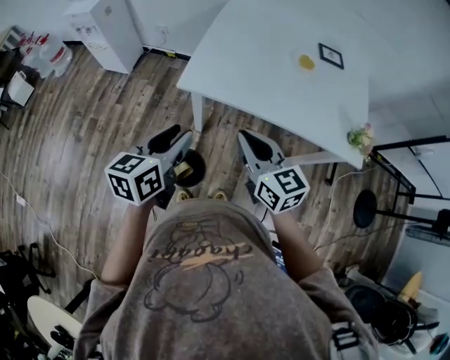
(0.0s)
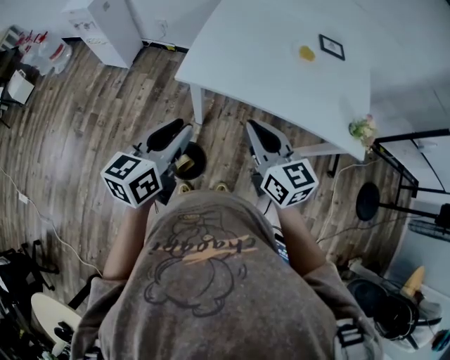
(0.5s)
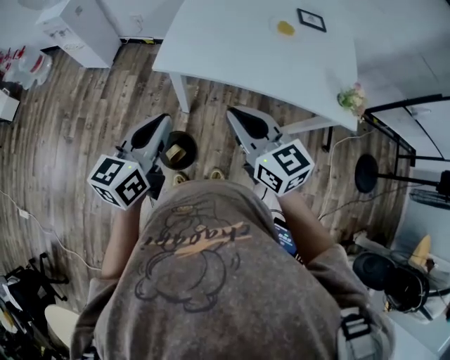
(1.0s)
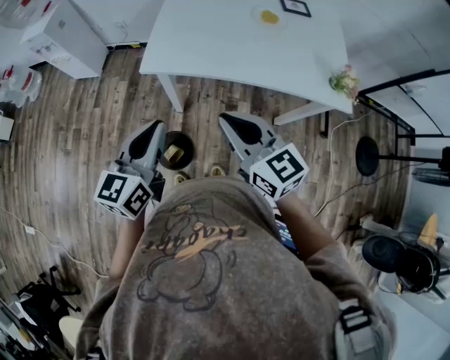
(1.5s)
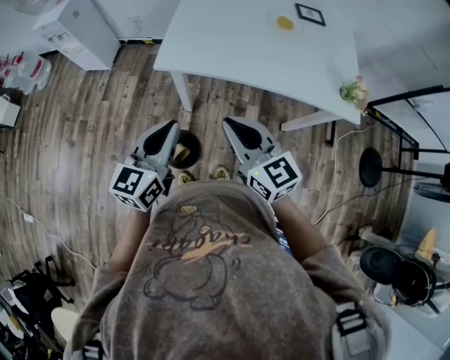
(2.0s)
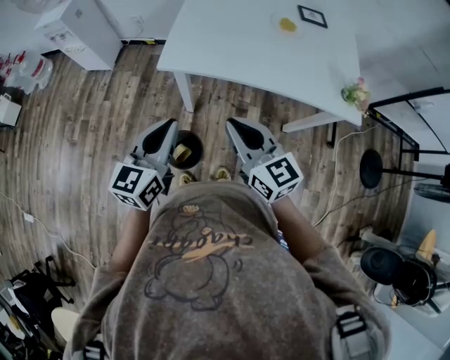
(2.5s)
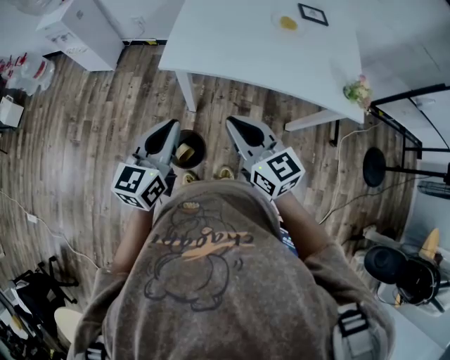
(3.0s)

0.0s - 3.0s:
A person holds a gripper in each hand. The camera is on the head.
0.0s - 1.5s: The right gripper is displaced backward by roughly 5 cm; the left gripper shifts by about 5 cm, and closes its fingers.
1.5s - 3.0s: The grippers stay close to where they were, moving slightly.

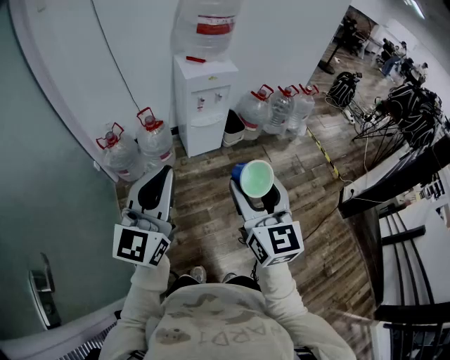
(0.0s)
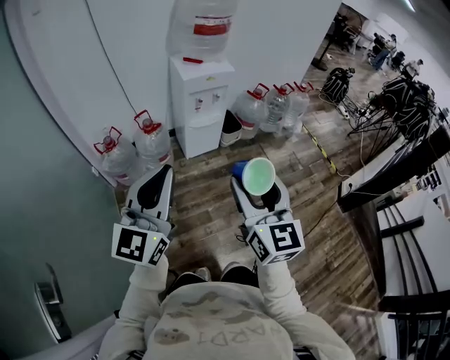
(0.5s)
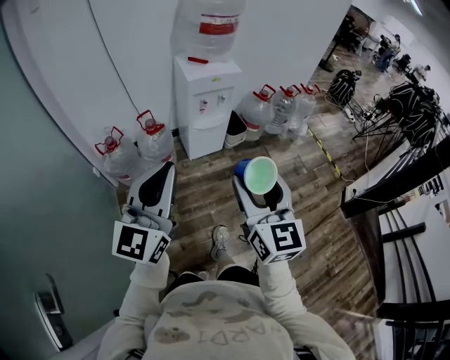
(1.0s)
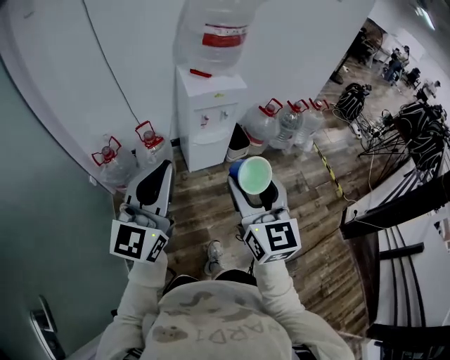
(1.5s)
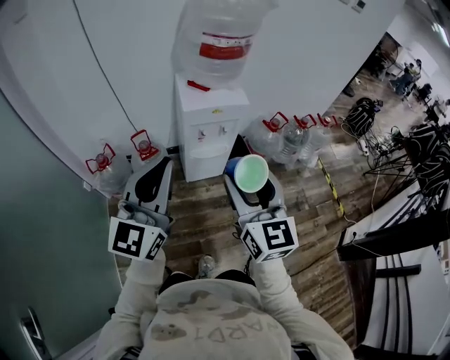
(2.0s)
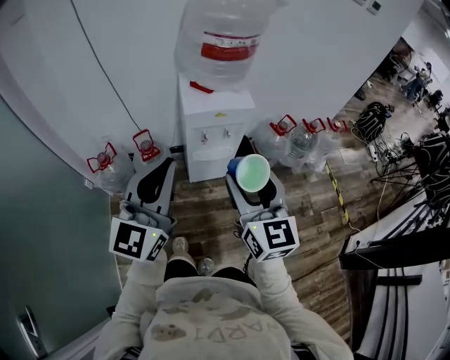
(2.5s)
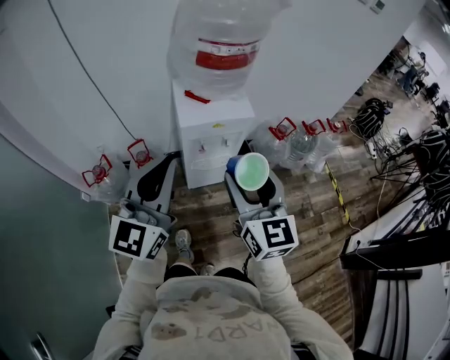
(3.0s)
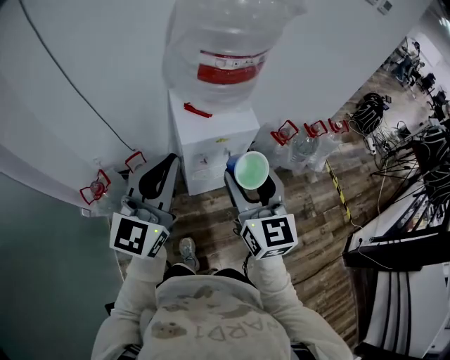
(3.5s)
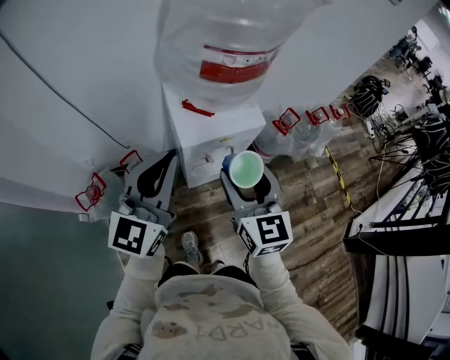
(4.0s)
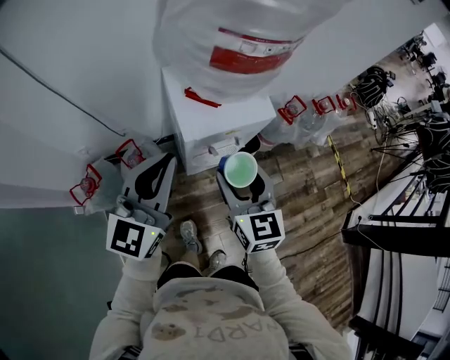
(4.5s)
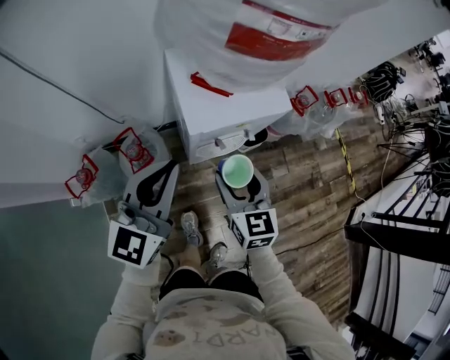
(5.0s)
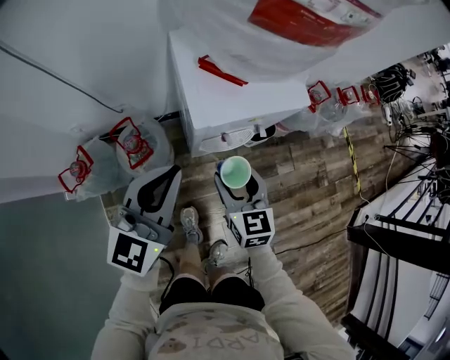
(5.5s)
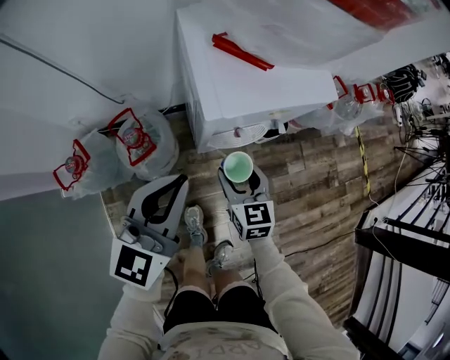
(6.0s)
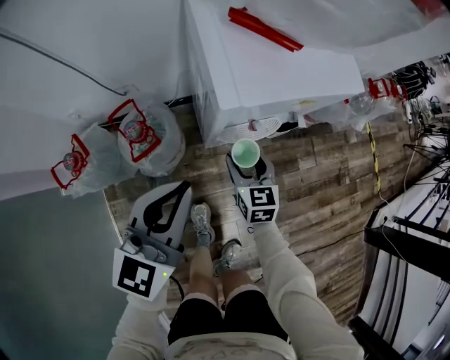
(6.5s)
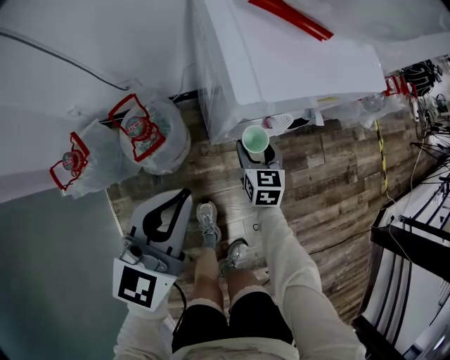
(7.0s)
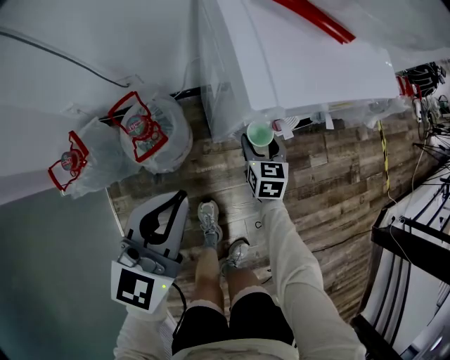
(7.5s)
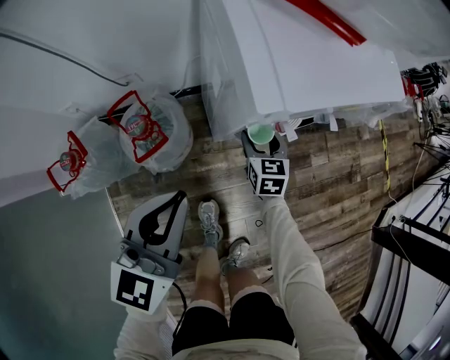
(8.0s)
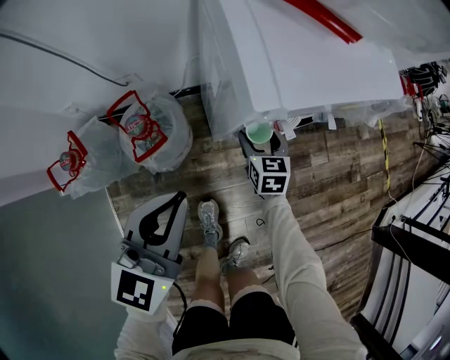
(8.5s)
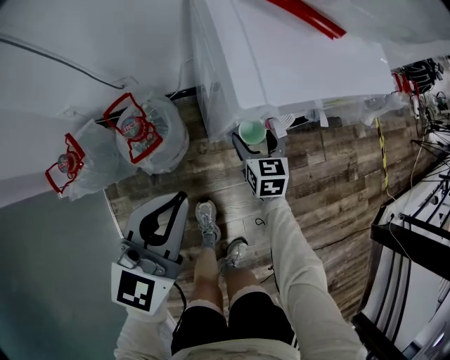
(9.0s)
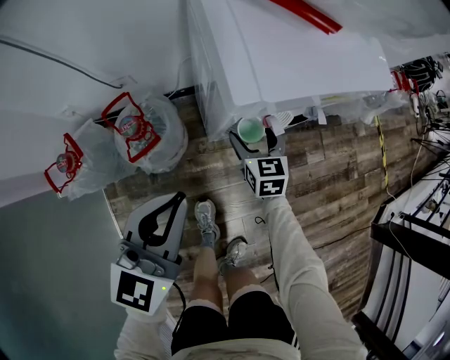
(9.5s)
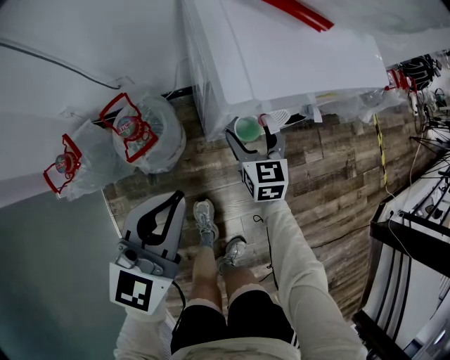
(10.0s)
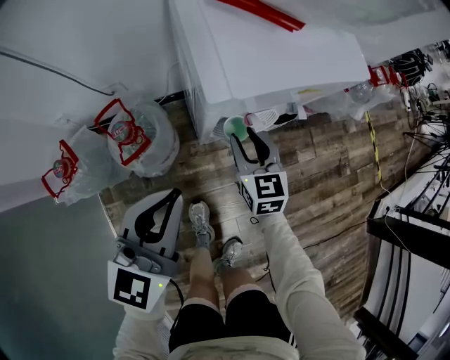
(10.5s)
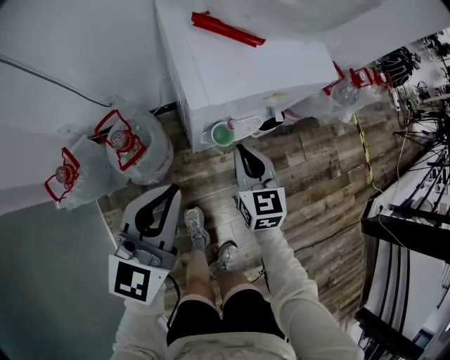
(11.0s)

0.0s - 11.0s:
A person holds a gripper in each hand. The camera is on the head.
0.0s - 2.0s: The grippers both shift forward by roughly 30 cm.
2.0s - 3.5s: Both grippers travel together forward, approximately 20 cm.
3.5s - 5.5s: The two grippers go about 25 cm downward. The right gripper turns by approximately 20 degrees.
5.5s - 7.5s: The left gripper moves downward, some 15 cm. Meanwhile the right gripper heads downward, covering some 25 cm.
7.5s - 9.0s: The grippers move only a little.
9.0s - 11.0s: The left gripper shifts about 5 cm upward, while the right gripper heads upward, covering about 15 cm, and closes.

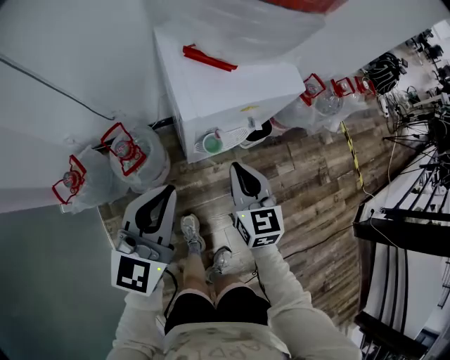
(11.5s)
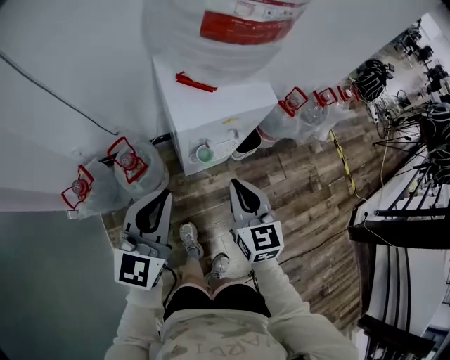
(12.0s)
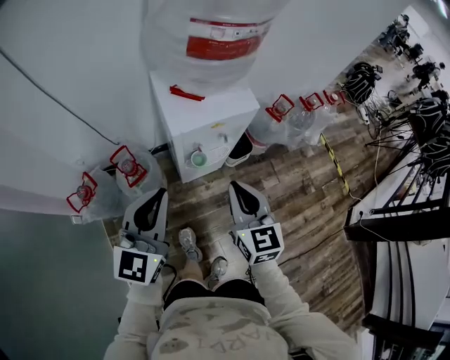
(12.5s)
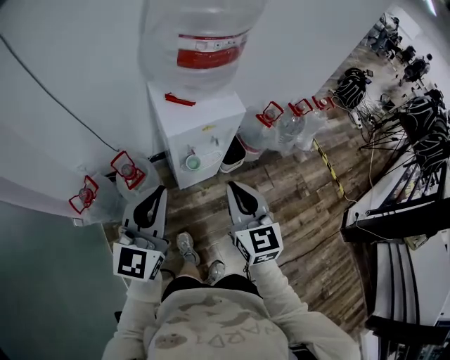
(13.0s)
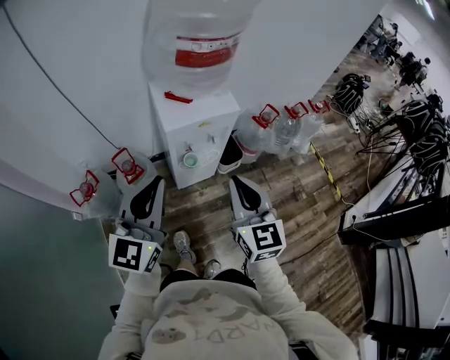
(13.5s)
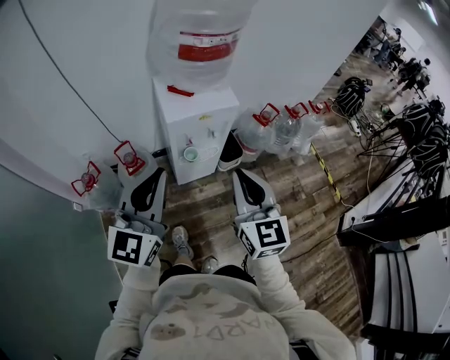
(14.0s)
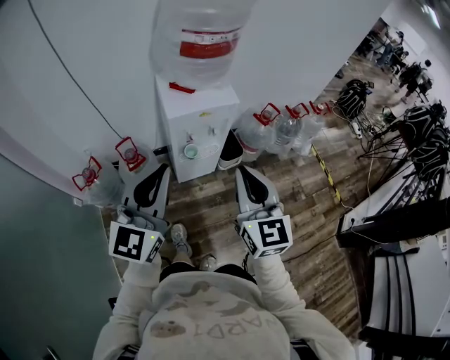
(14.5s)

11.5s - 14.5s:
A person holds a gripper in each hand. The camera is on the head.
11.5s - 13.0s: The grippers both shift upward and backward by roughly 25 cm.
13.0s - 14.5s: The left gripper heads backward and upward, covering approximately 10 cm. The right gripper heads upward and backward, covering roughly 10 cm.

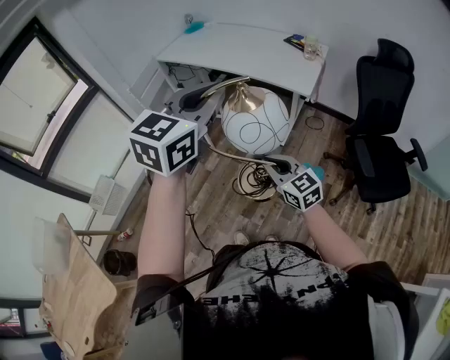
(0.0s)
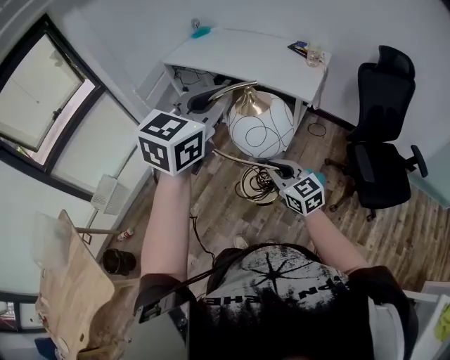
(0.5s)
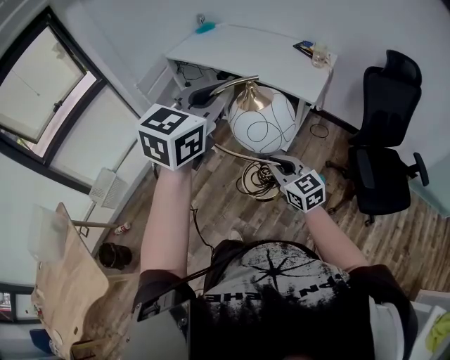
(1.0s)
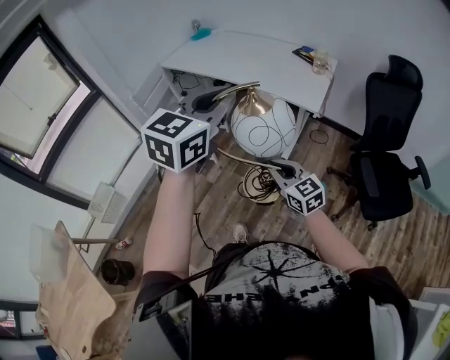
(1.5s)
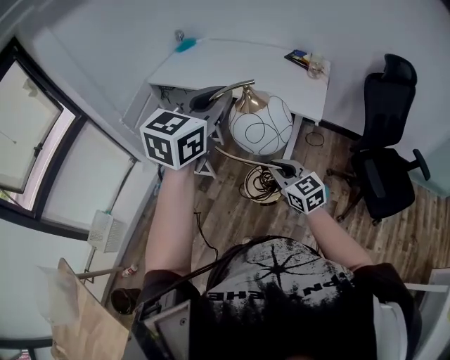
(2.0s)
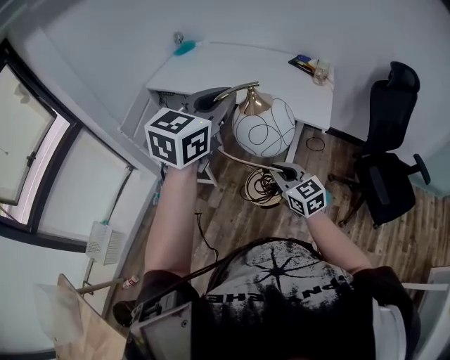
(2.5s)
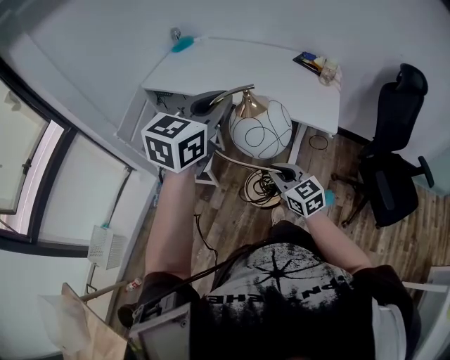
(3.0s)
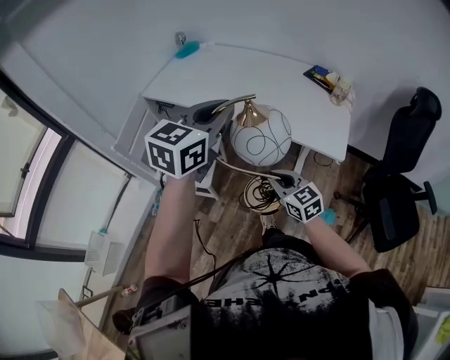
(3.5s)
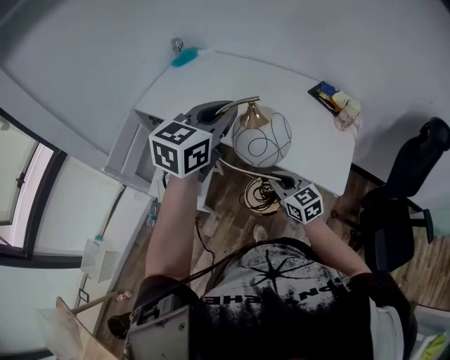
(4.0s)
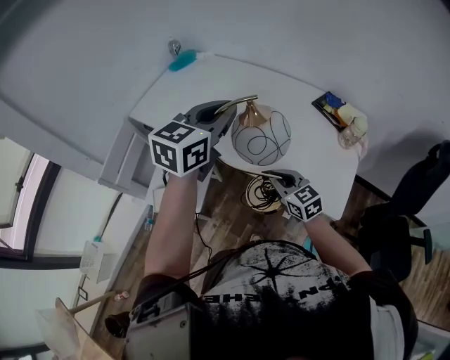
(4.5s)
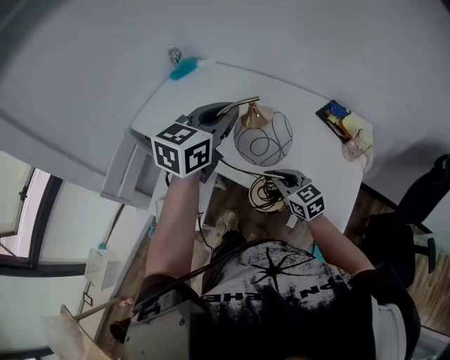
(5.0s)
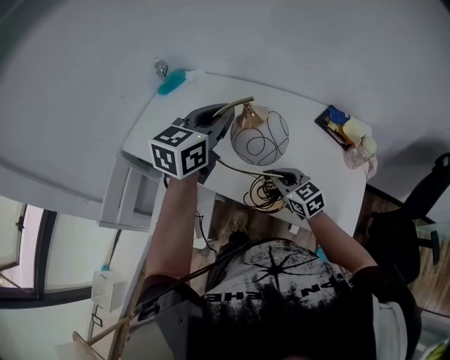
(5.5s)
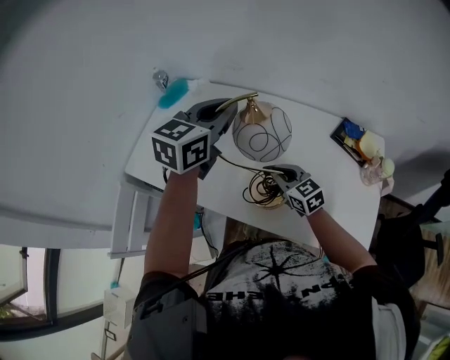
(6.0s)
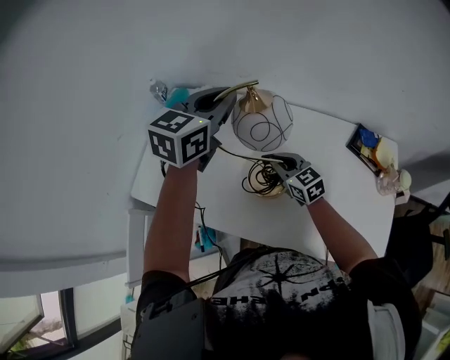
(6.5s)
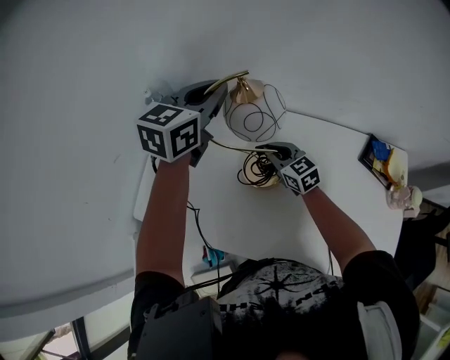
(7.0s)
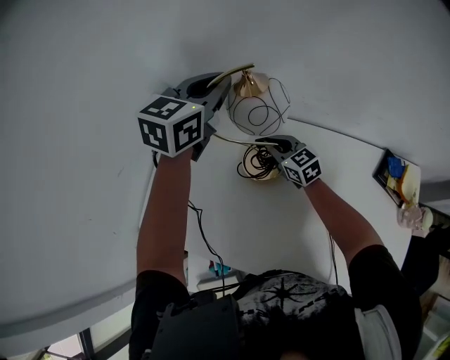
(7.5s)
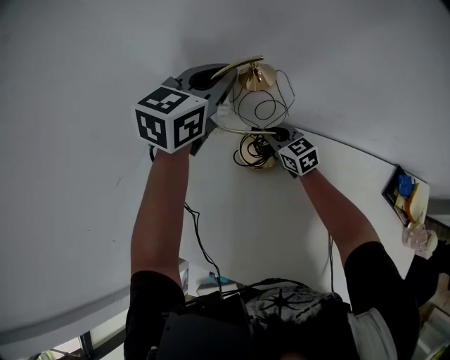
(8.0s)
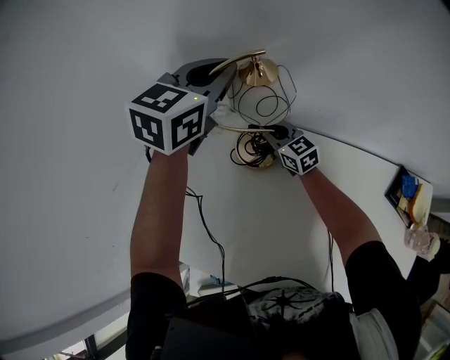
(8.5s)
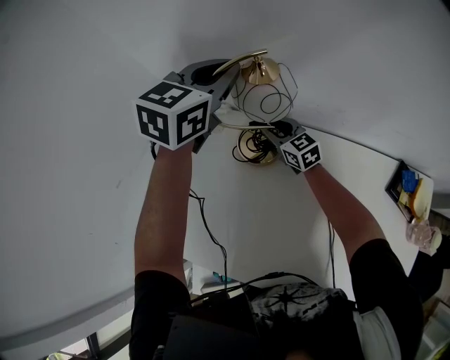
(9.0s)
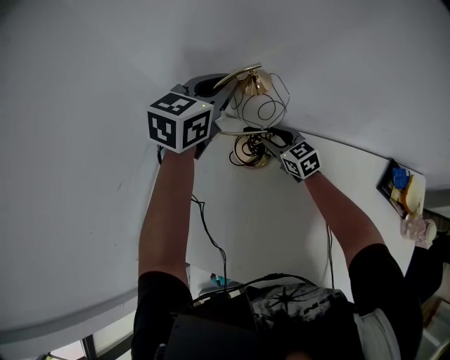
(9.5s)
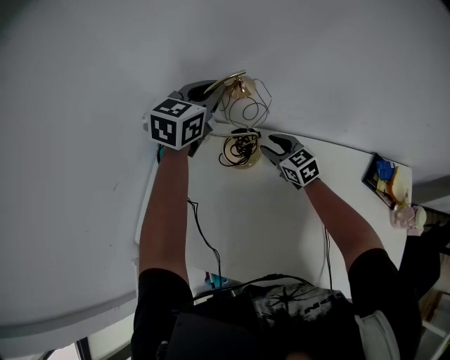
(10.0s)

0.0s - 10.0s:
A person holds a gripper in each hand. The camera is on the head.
0.0s - 2.0s: The two grippers go approximately 15 cm forward.
2.0s - 4.0s: Both grippers travel together forward, roughly 35 cm.
4.0s - 6.0s: Both grippers travel together forward, approximately 35 cm.
6.0s - 8.0s: The two grippers go about 40 cm forward.
8.0s - 10.0s: The right gripper moves backward and to the right, approximately 10 cm, and opens its fingers.
